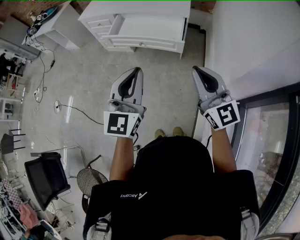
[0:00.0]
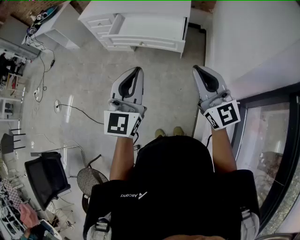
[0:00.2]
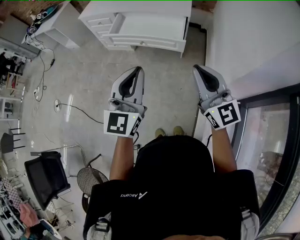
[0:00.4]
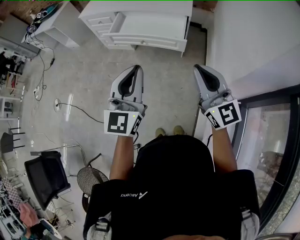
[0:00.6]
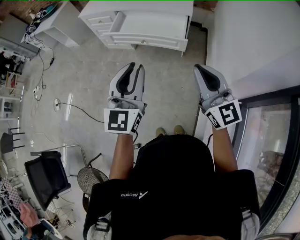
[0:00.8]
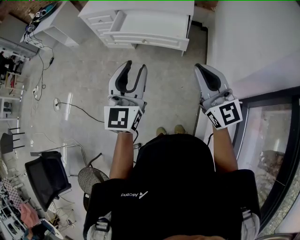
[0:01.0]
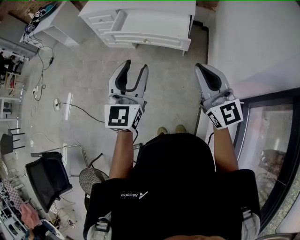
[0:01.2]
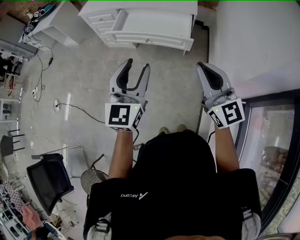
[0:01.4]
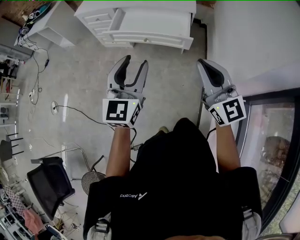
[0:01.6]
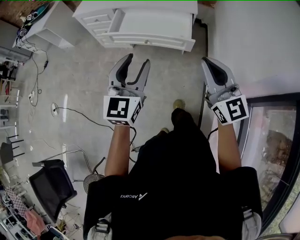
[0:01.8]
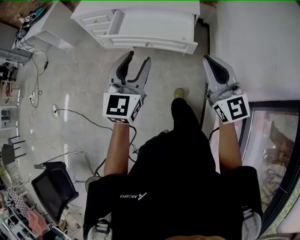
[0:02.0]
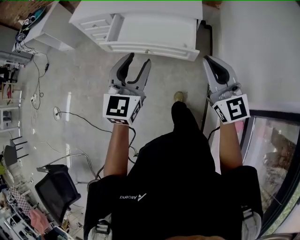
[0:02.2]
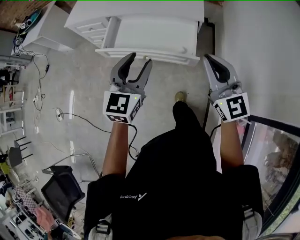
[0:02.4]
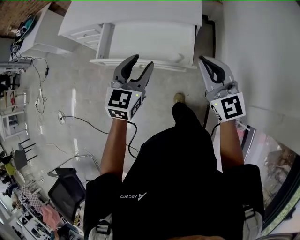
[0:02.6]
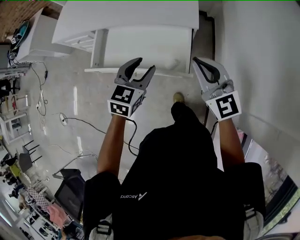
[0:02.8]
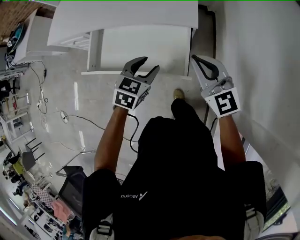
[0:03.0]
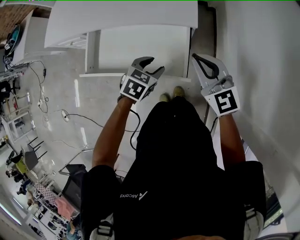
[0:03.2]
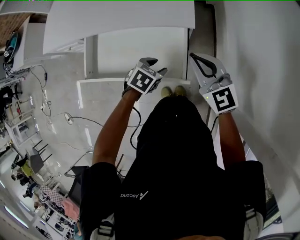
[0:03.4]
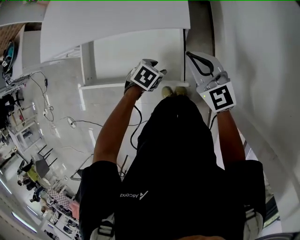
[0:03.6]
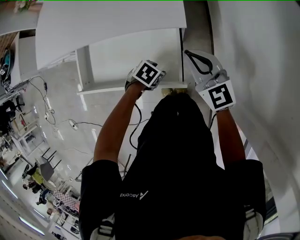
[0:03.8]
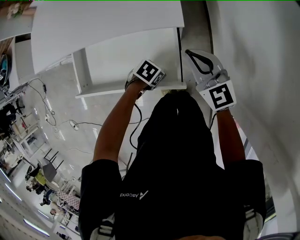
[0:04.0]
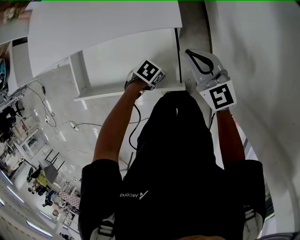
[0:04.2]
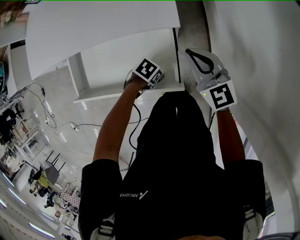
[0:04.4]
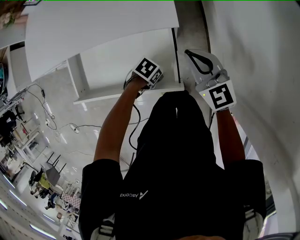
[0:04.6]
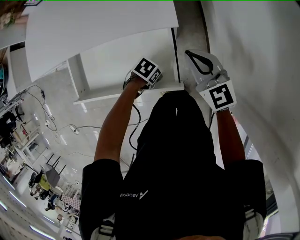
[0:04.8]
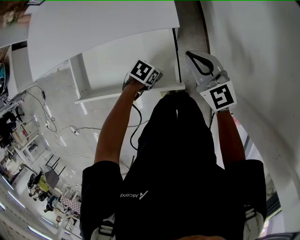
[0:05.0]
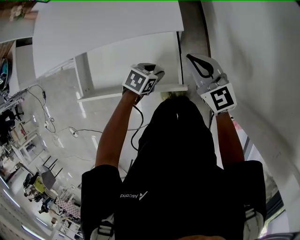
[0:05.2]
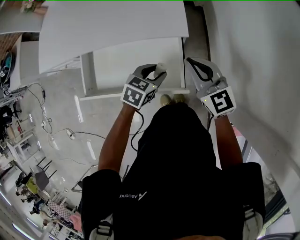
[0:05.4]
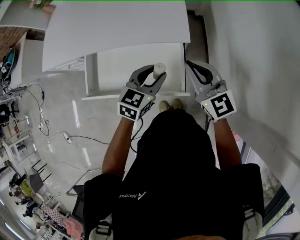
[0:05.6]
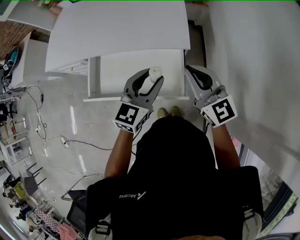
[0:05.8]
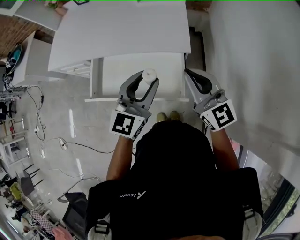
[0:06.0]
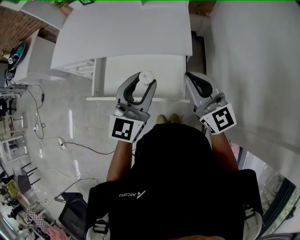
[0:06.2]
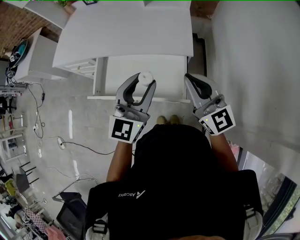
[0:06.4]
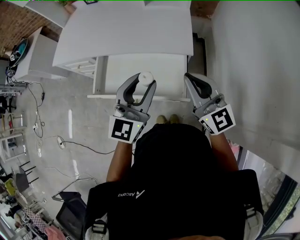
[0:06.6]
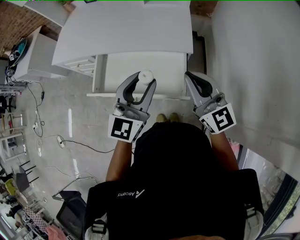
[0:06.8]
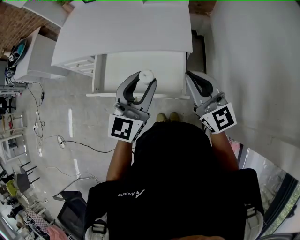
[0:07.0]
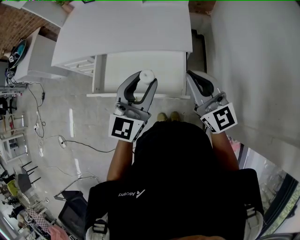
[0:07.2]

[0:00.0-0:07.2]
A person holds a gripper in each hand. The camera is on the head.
0:00.0 to 0:01.4: The left gripper travels to the left and forward by some 10 cm, and opens up, while the right gripper shifts some 5 cm to the left.
0:01.4 to 0:02.8: The pair of grippers is taken forward, about 40 cm. The left gripper travels downward by about 20 cm, and points its fingers some 30 degrees further downward.
0:02.8 to 0:04.4: The right gripper heads downward, covering about 20 cm. The left gripper goes about 35 cm downward, and tilts its fingers roughly 30 degrees downward.
0:04.4 to 0:05.8: The left gripper heads upward, covering roughly 35 cm, and points its fingers approximately 50 degrees further upward; the right gripper shifts approximately 15 cm upward.
0:05.8 to 0:07.2: The left gripper shifts roughly 10 cm upward and backward, while the right gripper heads backward, covering some 5 cm.

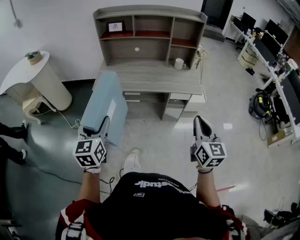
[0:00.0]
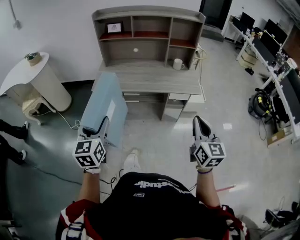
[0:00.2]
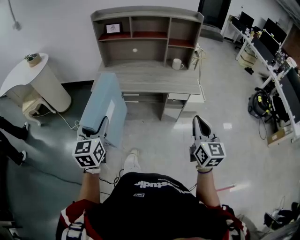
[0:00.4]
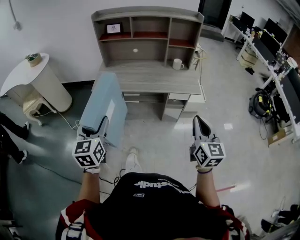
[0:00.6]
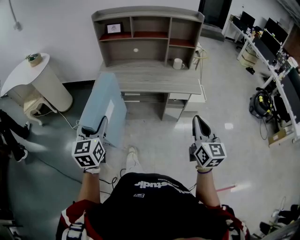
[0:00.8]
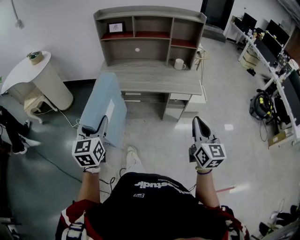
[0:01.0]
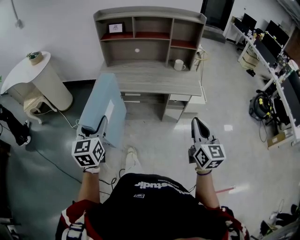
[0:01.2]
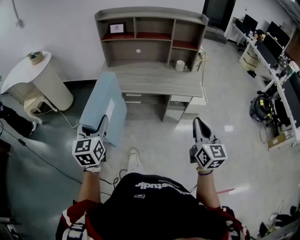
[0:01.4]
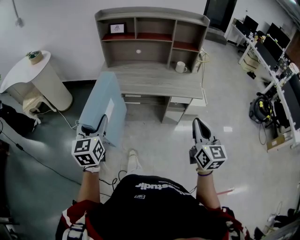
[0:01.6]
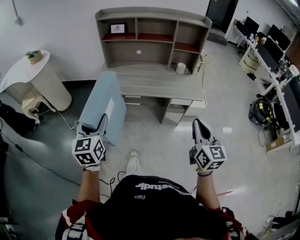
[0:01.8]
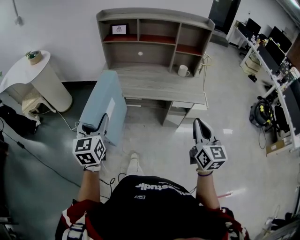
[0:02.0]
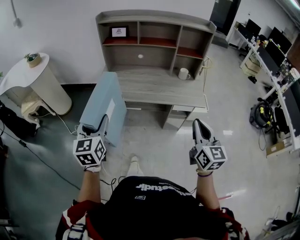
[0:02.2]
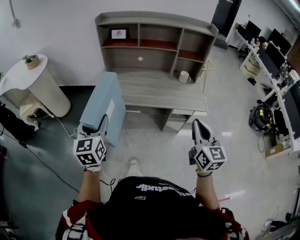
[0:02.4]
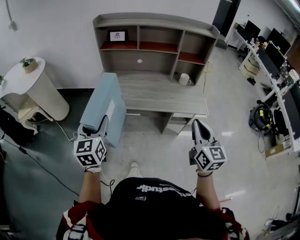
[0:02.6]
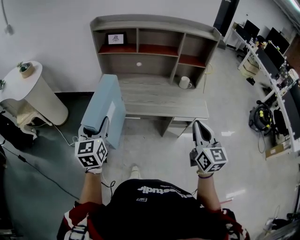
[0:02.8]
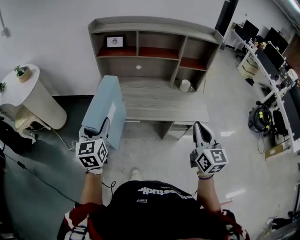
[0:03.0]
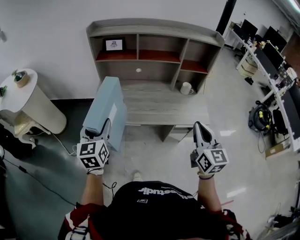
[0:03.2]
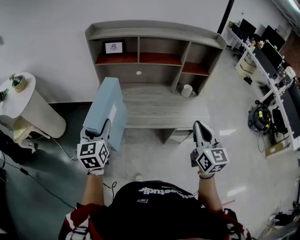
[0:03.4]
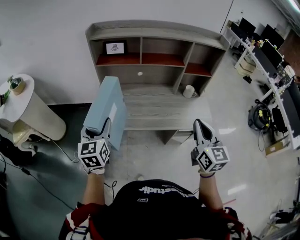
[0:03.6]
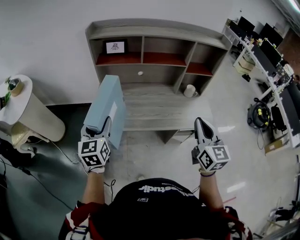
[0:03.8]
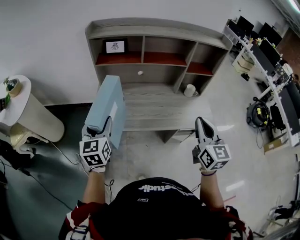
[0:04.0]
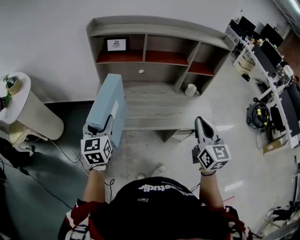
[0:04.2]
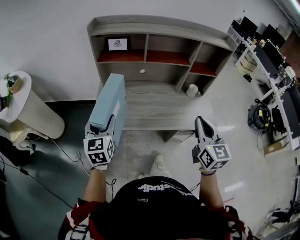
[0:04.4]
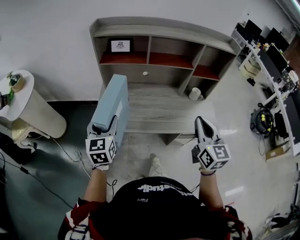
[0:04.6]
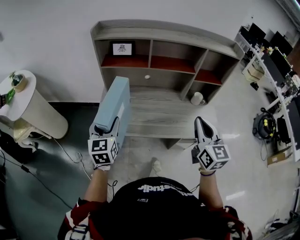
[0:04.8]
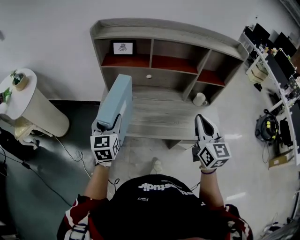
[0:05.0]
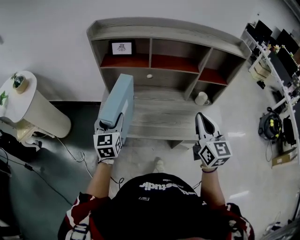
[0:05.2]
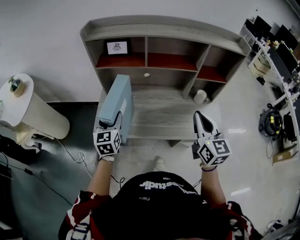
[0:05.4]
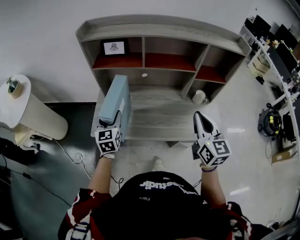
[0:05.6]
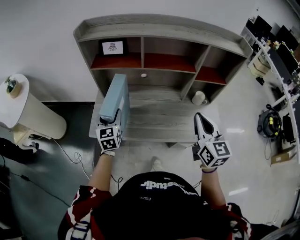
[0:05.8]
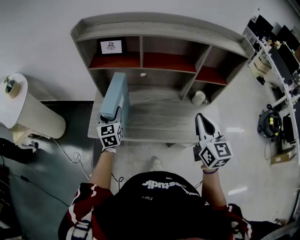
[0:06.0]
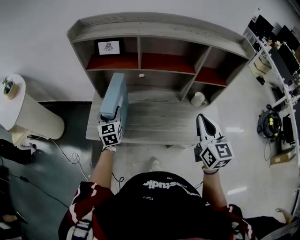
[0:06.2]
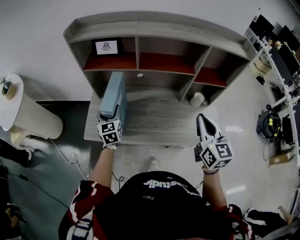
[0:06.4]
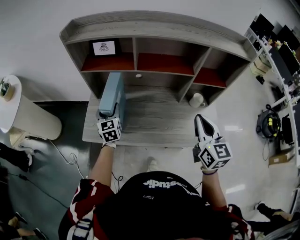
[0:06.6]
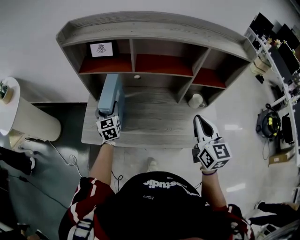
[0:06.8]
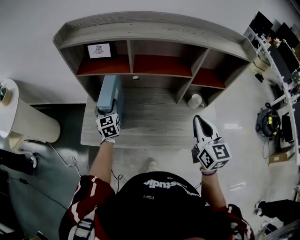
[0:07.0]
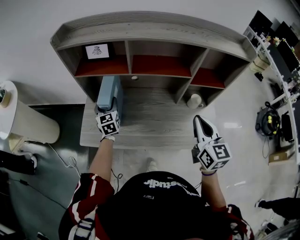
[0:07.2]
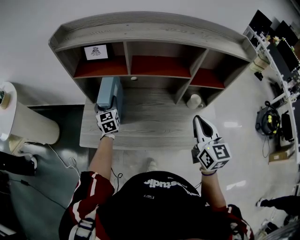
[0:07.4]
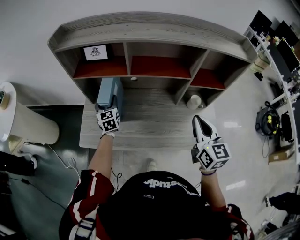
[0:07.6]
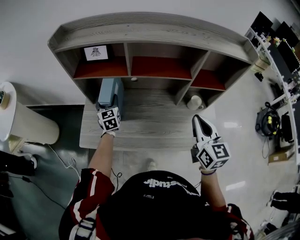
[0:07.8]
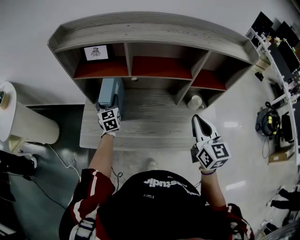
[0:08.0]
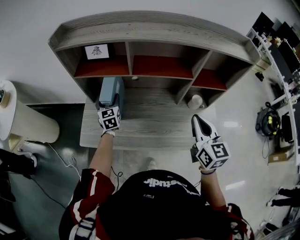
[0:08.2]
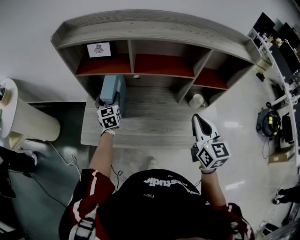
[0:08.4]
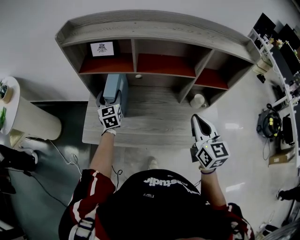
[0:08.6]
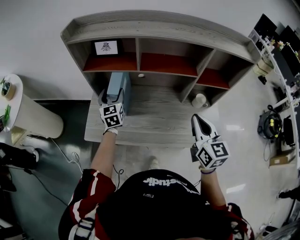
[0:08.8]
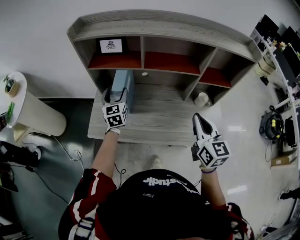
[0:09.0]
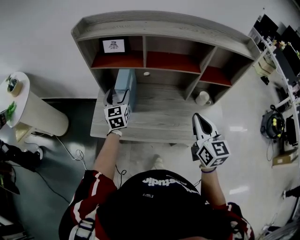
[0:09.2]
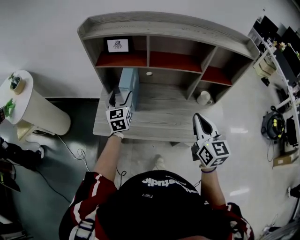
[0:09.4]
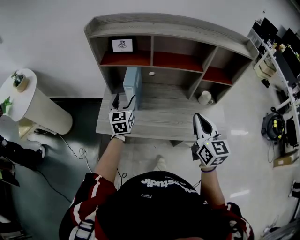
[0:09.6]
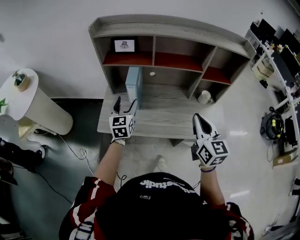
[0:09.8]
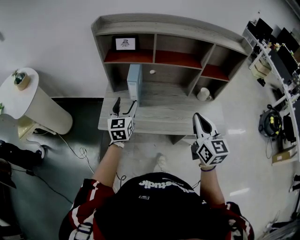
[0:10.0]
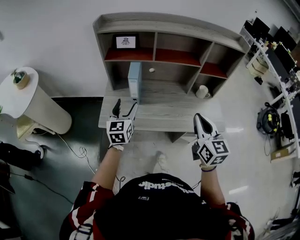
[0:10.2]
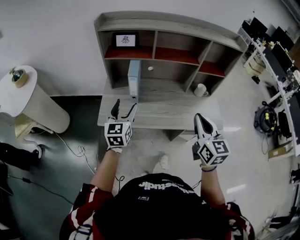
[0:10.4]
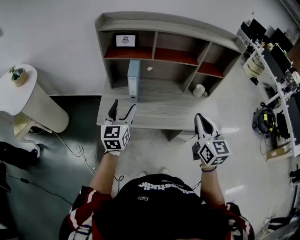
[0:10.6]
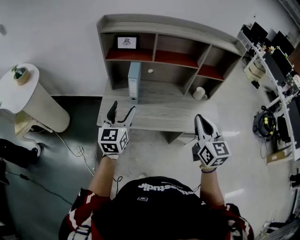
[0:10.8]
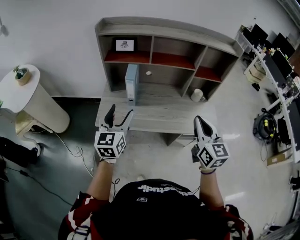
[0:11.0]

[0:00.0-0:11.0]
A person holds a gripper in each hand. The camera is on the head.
0:00.0 to 0:01.6: The grippers stay close to where they were, moving slightly.
0:01.6 to 0:03.2: The two grippers go about 25 cm forward.
0:03.2 to 0:04.8: The left gripper moves forward, roughly 15 cm. Meanwhile the right gripper heads forward and to the left, covering some 15 cm.
0:04.8 to 0:06.2: The right gripper moves forward and to the right, some 10 cm. The left gripper goes approximately 20 cm forward and downward.
0:06.2 to 0:07.8: The right gripper travels forward by about 5 cm, while the left gripper travels forward by approximately 15 cm.
0:07.8 to 0:09.4: The right gripper moves to the left and backward, some 10 cm; the left gripper travels backward and upward by roughly 15 cm.
0:09.4 to 0:11.0: The left gripper goes some 25 cm backward and upward. Meanwhile the right gripper shifts approximately 10 cm backward.

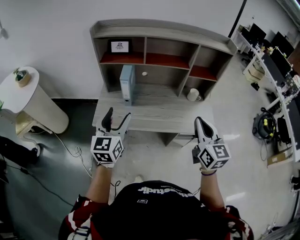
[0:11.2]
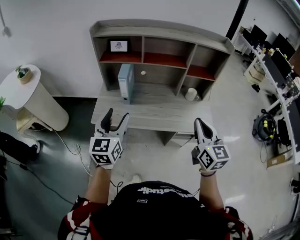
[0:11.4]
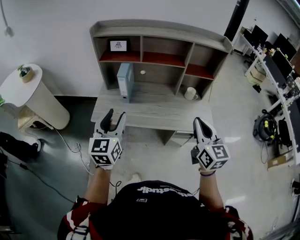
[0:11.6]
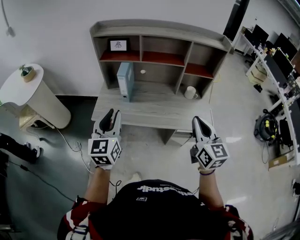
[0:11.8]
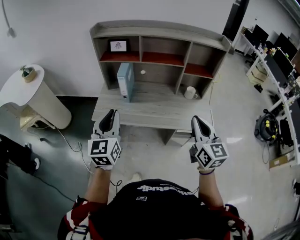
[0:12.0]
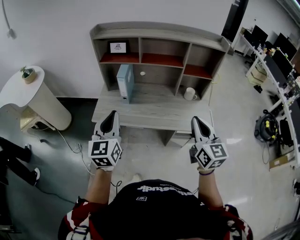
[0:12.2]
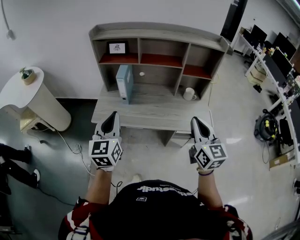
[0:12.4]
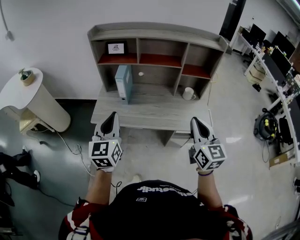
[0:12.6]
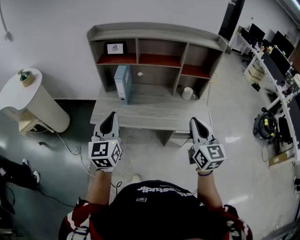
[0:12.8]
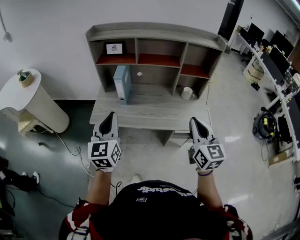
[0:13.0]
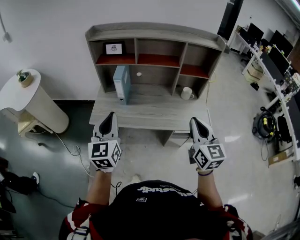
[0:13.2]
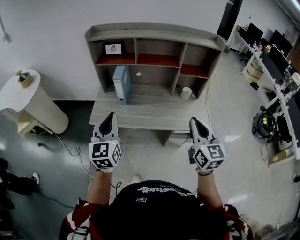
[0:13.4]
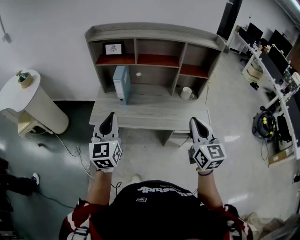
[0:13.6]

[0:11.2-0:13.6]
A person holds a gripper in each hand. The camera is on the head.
0:11.2 to 0:12.4: The right gripper changes place by roughly 5 cm. The left gripper shifts roughly 5 cm backward, and closes up.
0:12.4 to 0:13.6: The two grippers keep their place.

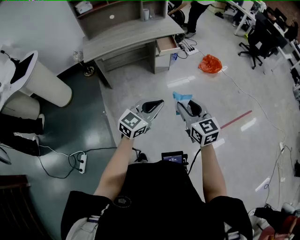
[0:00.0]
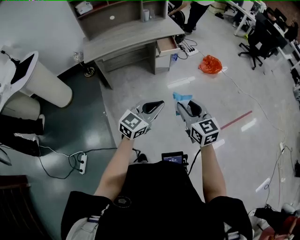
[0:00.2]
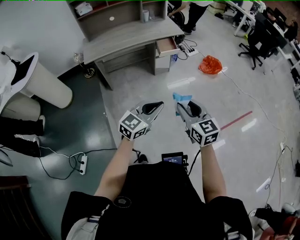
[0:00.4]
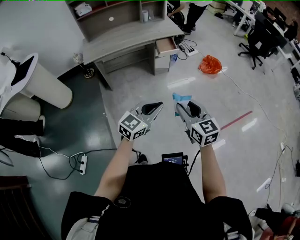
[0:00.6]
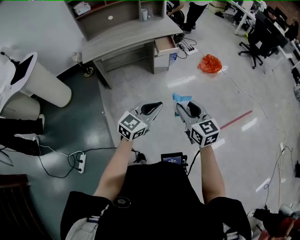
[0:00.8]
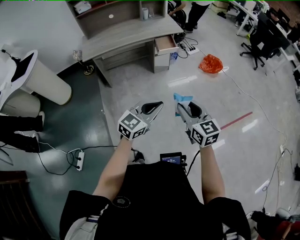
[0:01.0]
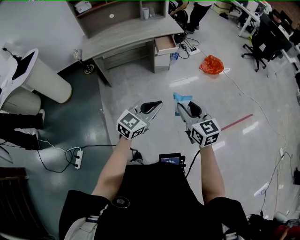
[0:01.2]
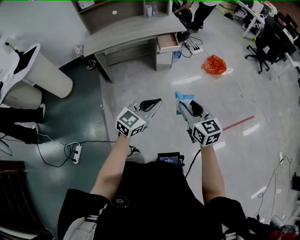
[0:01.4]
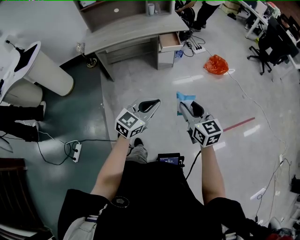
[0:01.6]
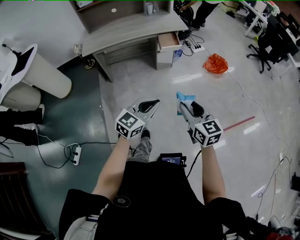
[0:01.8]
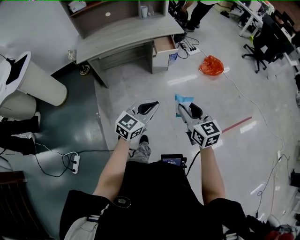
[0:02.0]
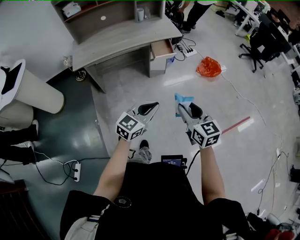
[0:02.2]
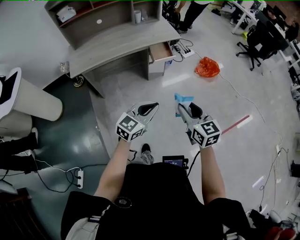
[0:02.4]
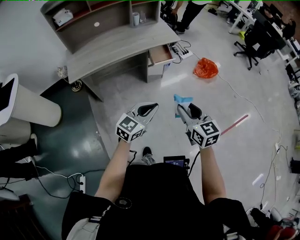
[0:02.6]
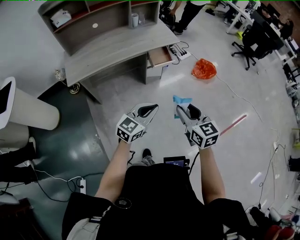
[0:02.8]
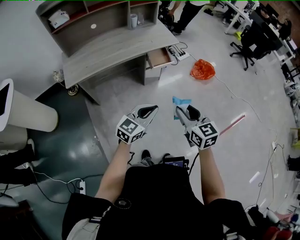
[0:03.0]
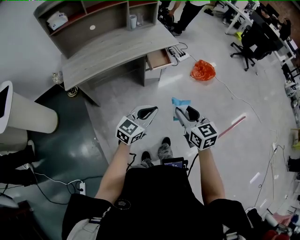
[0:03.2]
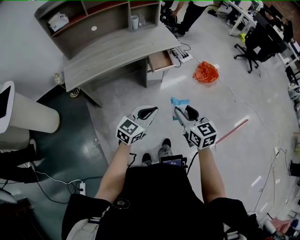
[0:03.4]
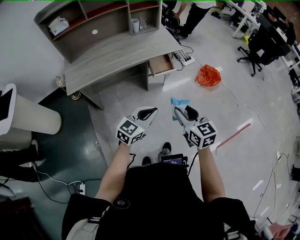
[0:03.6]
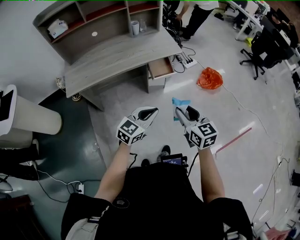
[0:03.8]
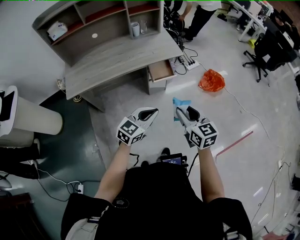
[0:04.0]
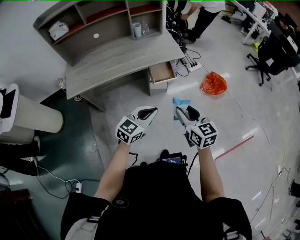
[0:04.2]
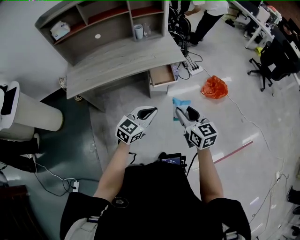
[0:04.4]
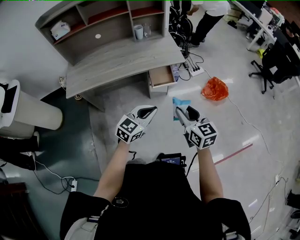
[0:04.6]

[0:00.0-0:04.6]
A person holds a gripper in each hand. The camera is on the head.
0:00.0 to 0:01.6: The grippers both shift to the right by approximately 5 cm.
0:01.6 to 0:03.0: The two grippers go about 25 cm forward and to the left.
0:03.0 to 0:04.6: The right gripper goes some 20 cm forward. The left gripper moves forward and to the right, roughly 20 cm.
